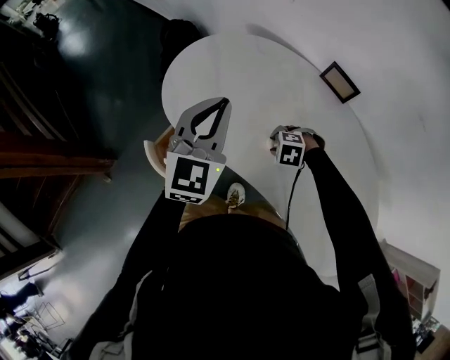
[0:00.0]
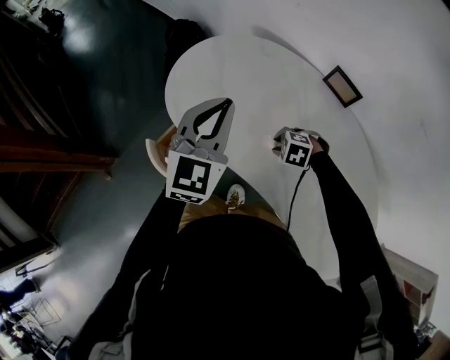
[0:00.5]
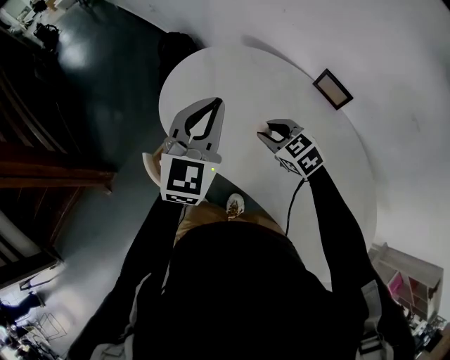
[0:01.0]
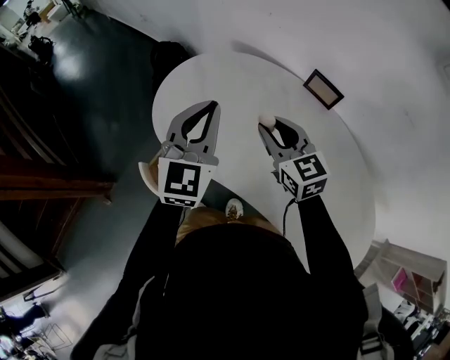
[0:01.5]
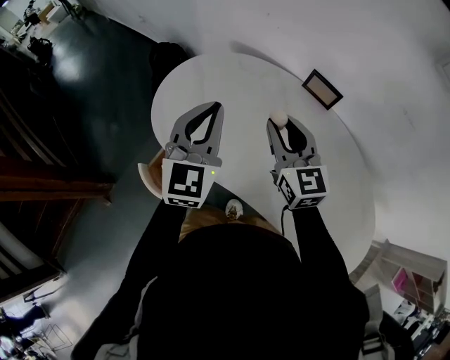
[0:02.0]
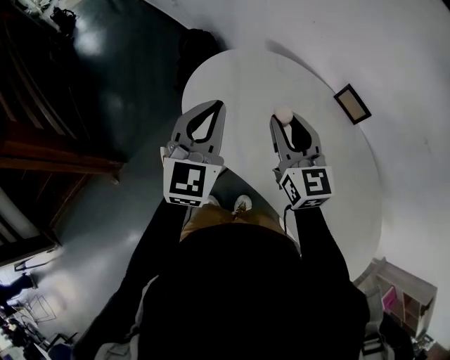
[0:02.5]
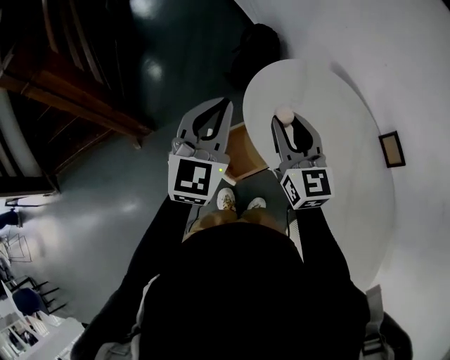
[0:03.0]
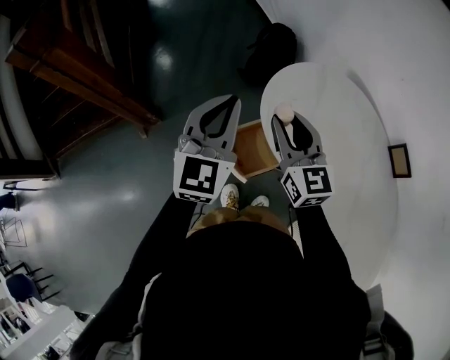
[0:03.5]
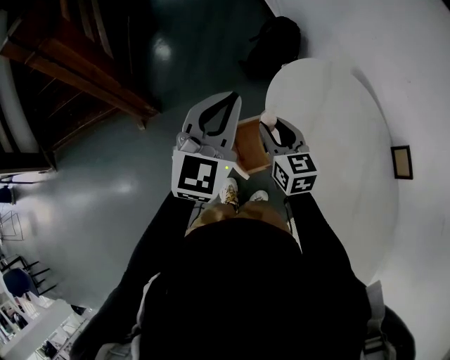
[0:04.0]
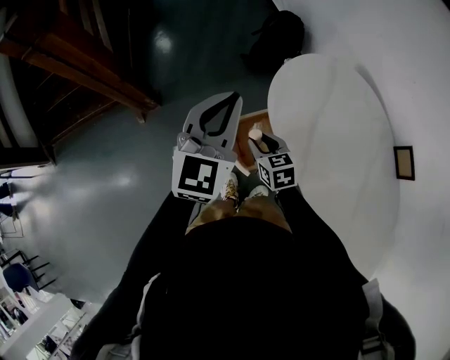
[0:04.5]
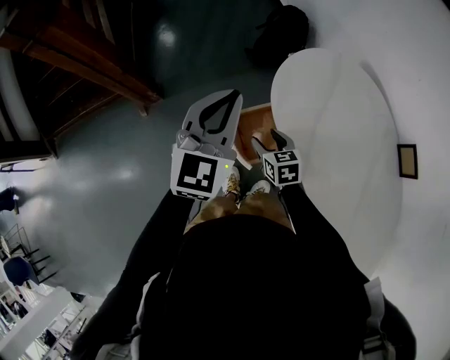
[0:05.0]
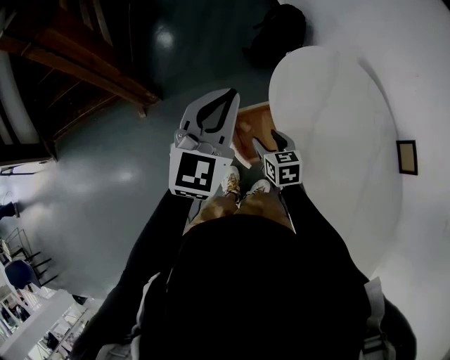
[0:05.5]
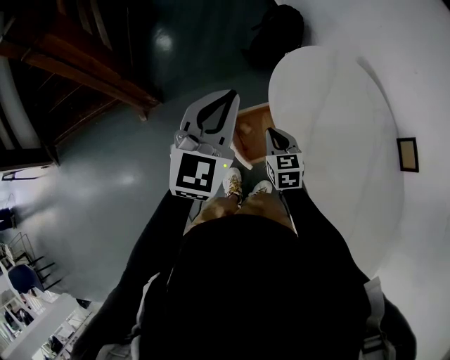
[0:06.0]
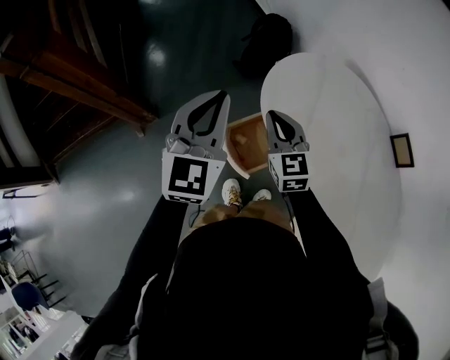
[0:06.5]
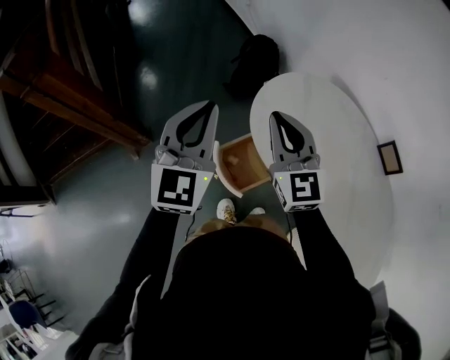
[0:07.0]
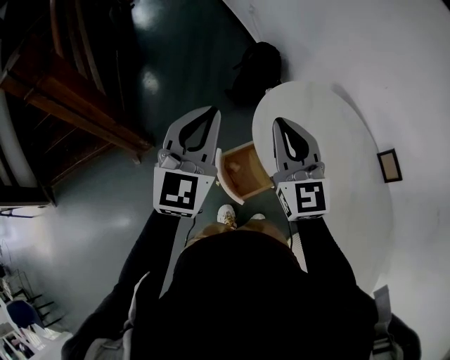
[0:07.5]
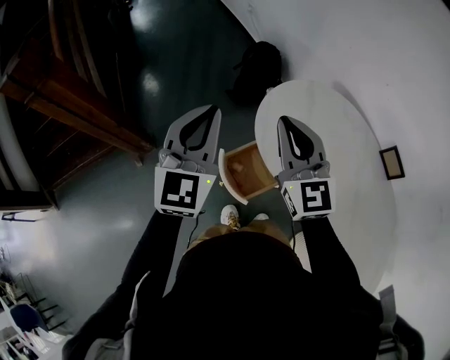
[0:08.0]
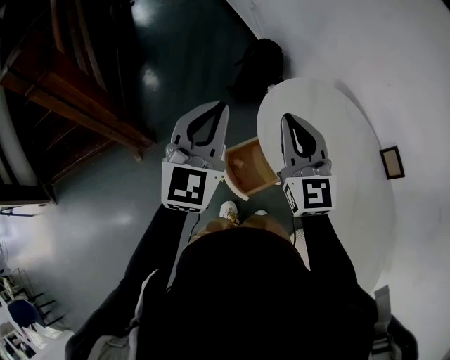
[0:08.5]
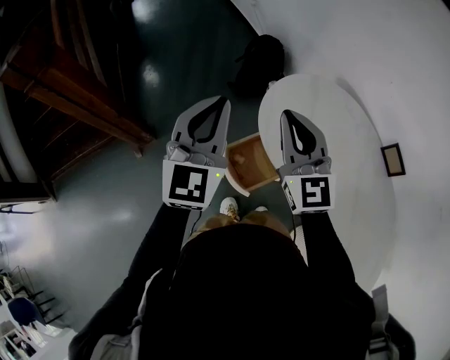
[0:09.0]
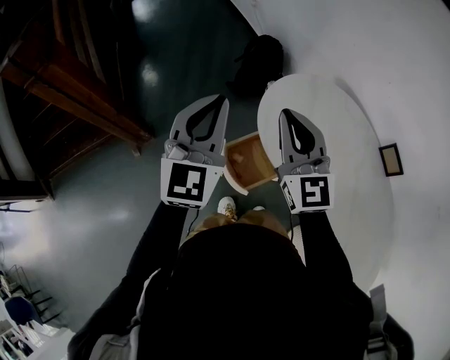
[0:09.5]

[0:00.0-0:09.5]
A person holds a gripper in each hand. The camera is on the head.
0:00.0 to 0:02.0: The right gripper travels upward by some 30 cm, and tilts its fingers about 70 degrees upward.
0:02.0 to 0:04.0: The right gripper shifts by about 35 cm, and turns by roughly 40 degrees. The left gripper shifts by approximately 30 cm, and turns by roughly 30 degrees.
0:04.0 to 0:05.5: The right gripper heads downward, covering some 15 cm, and opens its fingers.
0:05.5 to 0:07.5: The right gripper moves upward, about 30 cm, points its fingers roughly 40 degrees further upward, and closes its fingers. The left gripper moves upward, about 5 cm.
0:07.5 to 0:09.5: There are only small adjustments of the grippers.

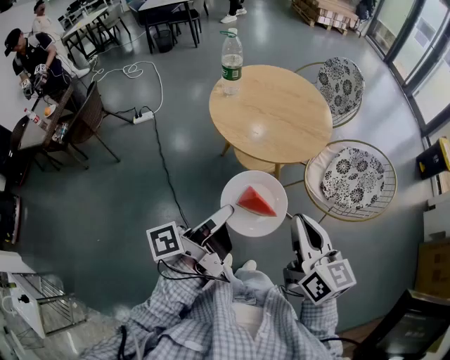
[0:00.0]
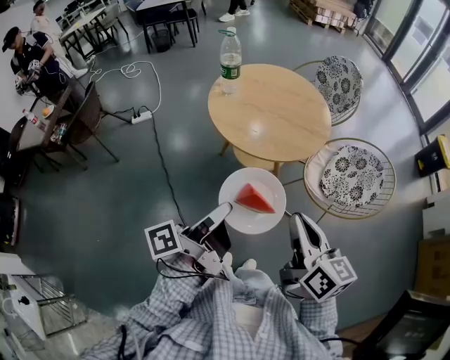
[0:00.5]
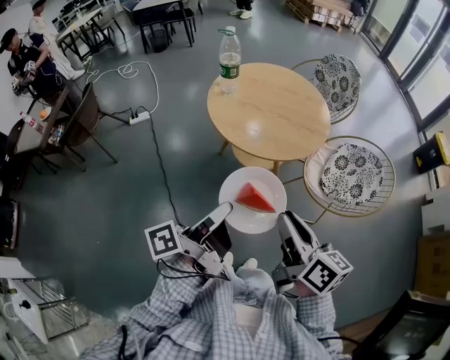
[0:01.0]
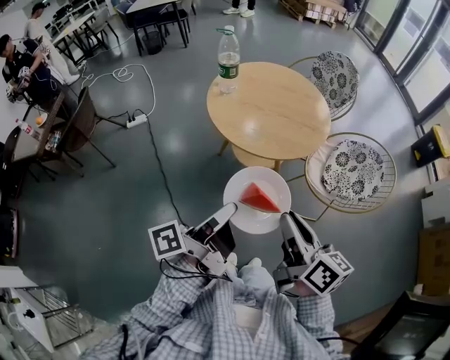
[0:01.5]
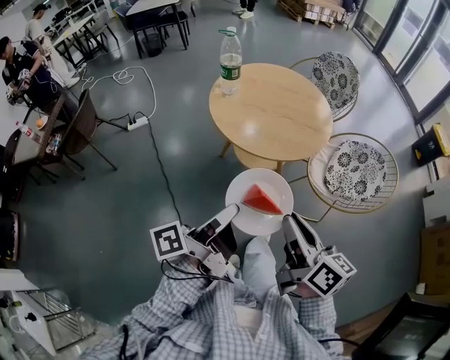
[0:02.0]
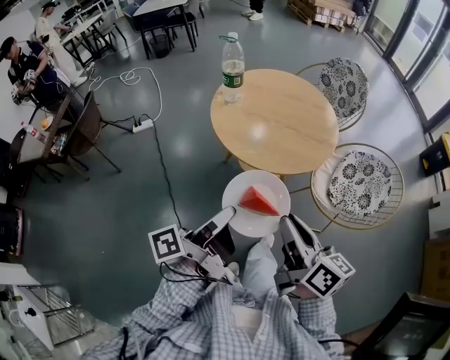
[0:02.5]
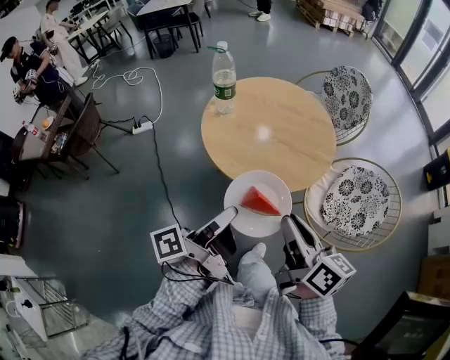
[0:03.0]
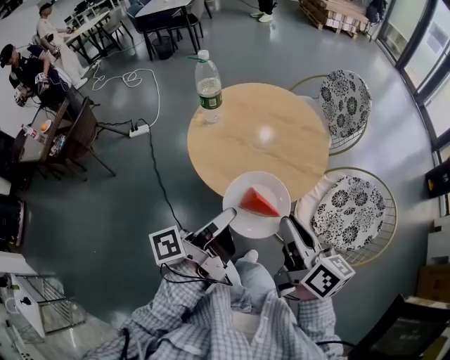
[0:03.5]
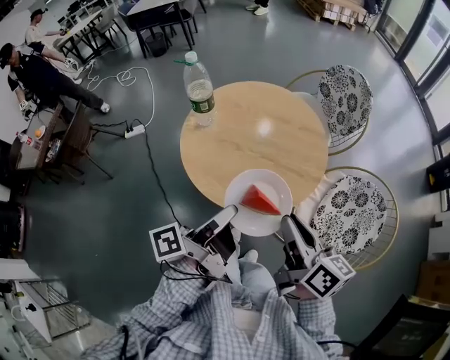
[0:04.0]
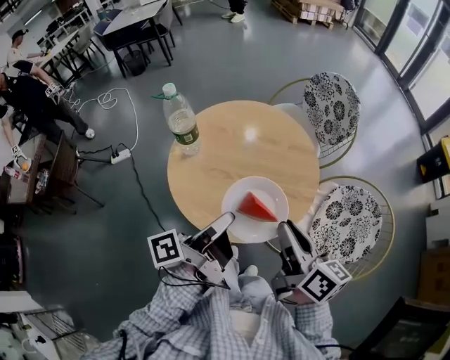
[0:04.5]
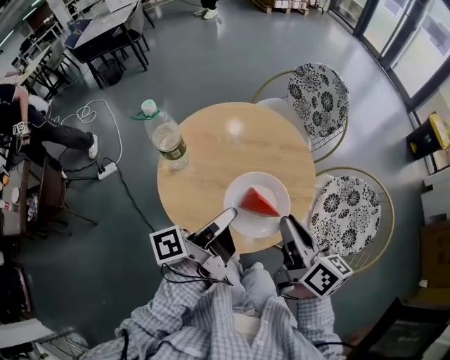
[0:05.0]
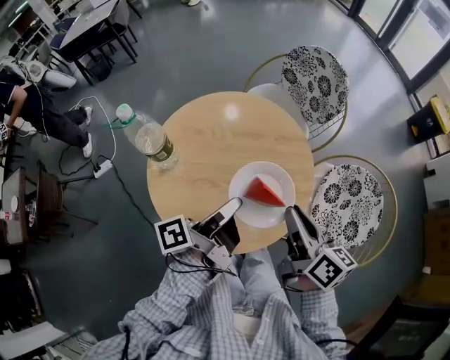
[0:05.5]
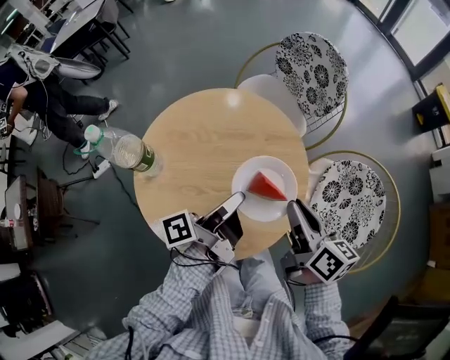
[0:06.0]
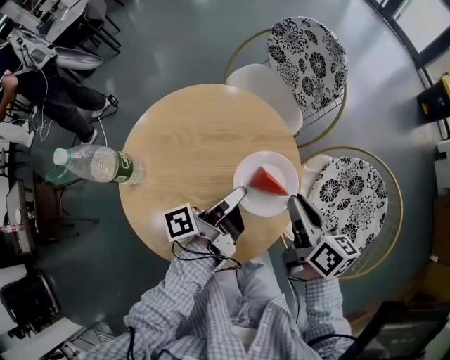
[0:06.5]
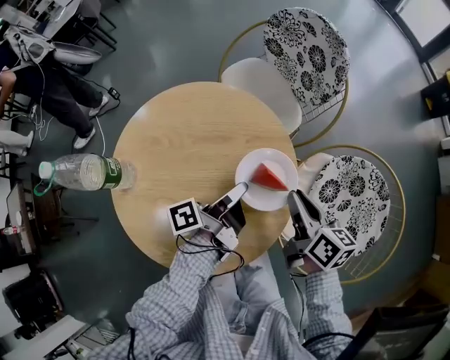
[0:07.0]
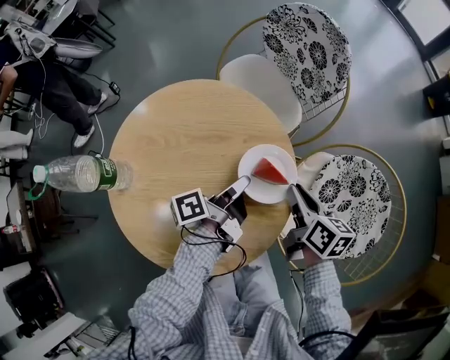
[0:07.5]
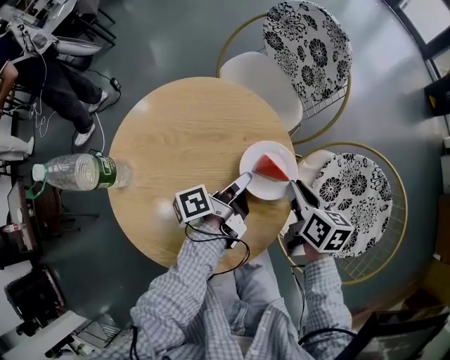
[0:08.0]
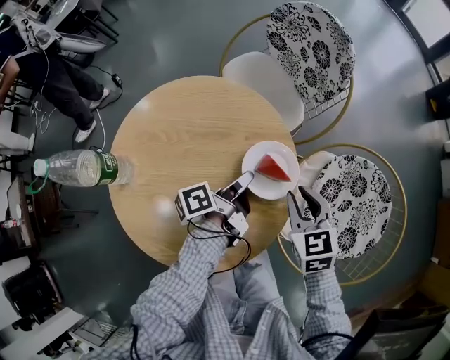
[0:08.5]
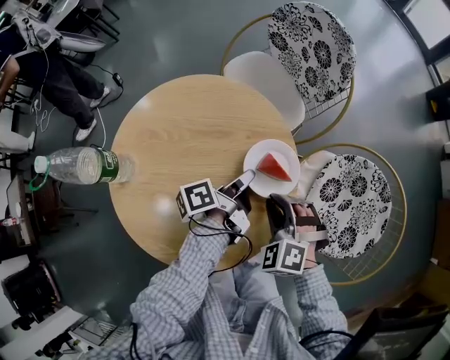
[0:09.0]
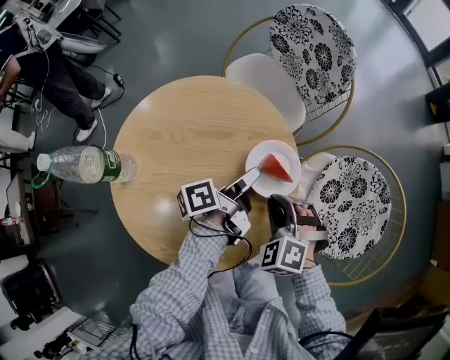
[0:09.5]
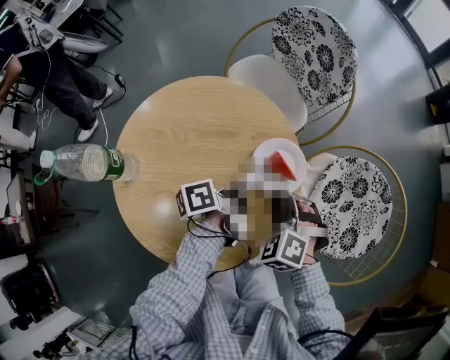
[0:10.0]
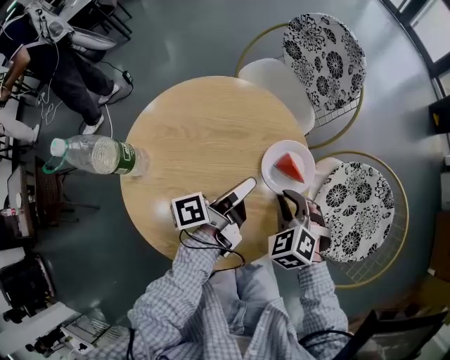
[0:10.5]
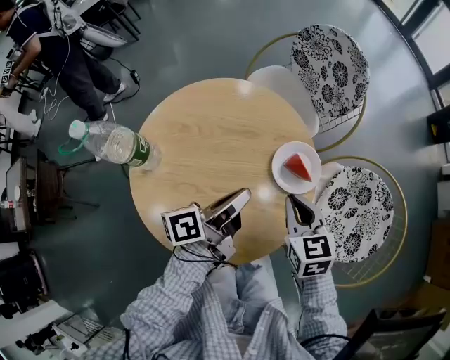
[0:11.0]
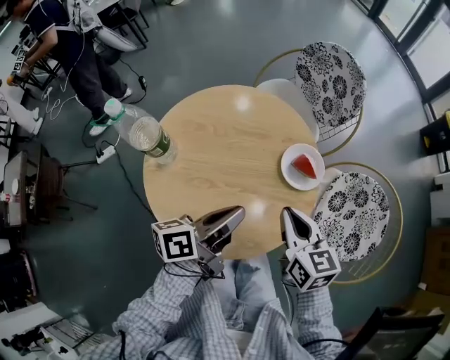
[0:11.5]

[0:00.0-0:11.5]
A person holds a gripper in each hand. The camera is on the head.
0:00.0 to 0:02.0: The right gripper shifts by about 5 cm, and changes its angle by roughly 20 degrees.
0:02.0 to 0:04.0: The right gripper changes place by roughly 25 cm.
0:04.0 to 0:06.0: The right gripper moves about 20 cm.
0:06.0 to 0:07.5: The right gripper heads downward, covering some 15 cm.
0:07.5 to 0:09.5: The right gripper shifts by roughly 10 cm, and rotates around the line of its fingers by roughly 90 degrees, counterclockwise from behind.
0:09.5 to 0:11.5: The right gripper shifts approximately 10 cm upward, and twists about 60 degrees clockwise, seen from behind.

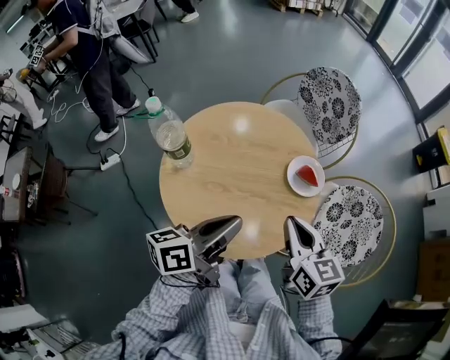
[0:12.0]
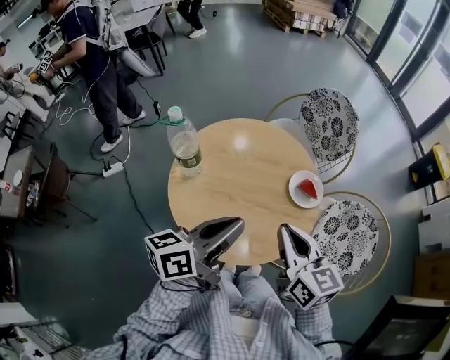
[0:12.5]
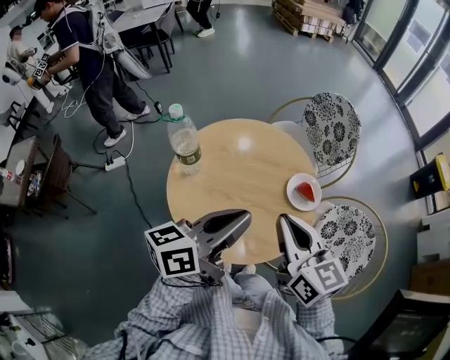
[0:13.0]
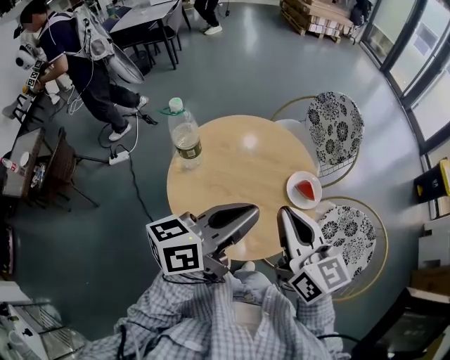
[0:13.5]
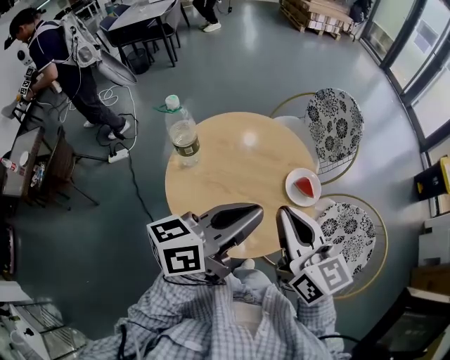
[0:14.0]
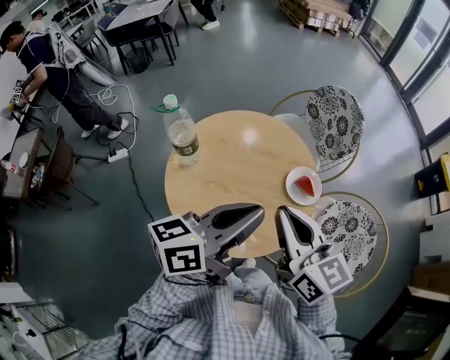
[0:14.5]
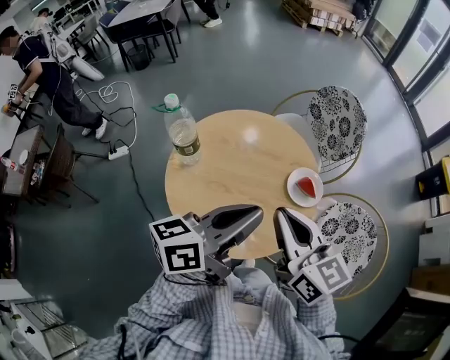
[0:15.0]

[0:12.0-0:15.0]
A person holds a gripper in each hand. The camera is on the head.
0:12.0 to 0:13.5: The right gripper heads upward, covering approximately 10 cm, and swivels approximately 20 degrees.

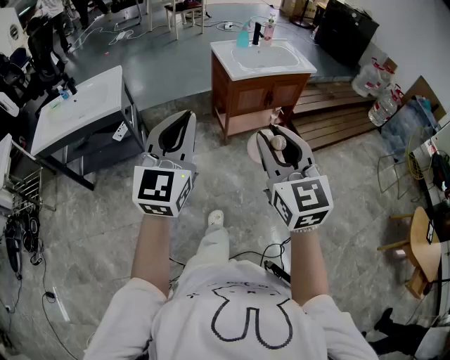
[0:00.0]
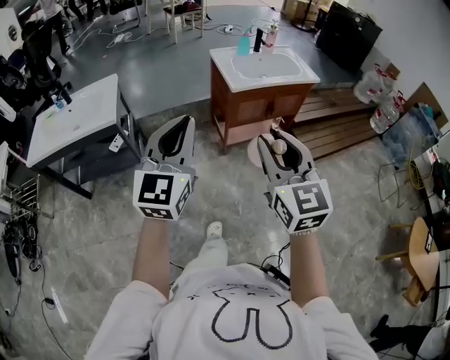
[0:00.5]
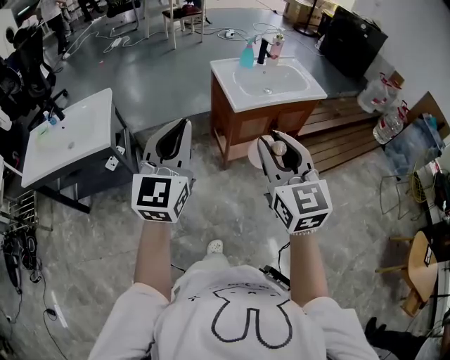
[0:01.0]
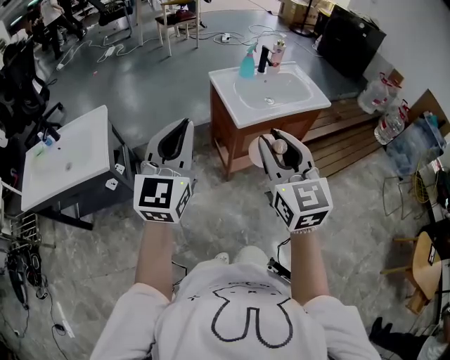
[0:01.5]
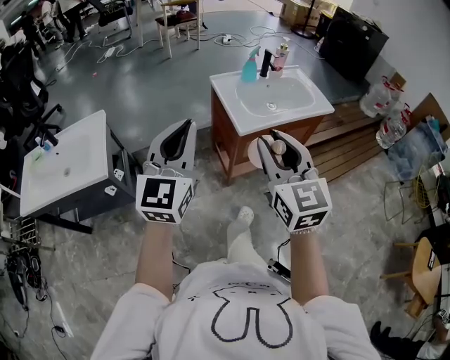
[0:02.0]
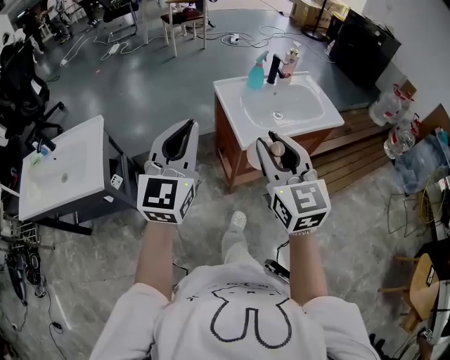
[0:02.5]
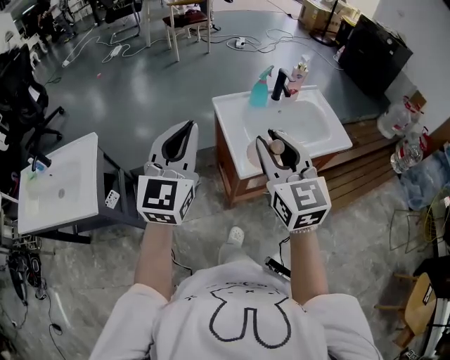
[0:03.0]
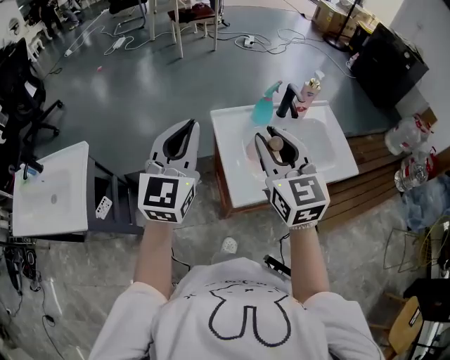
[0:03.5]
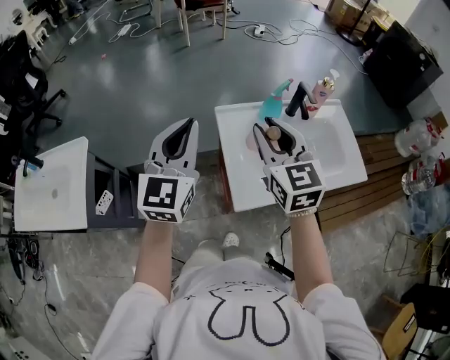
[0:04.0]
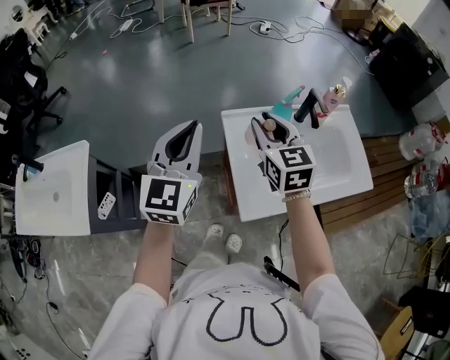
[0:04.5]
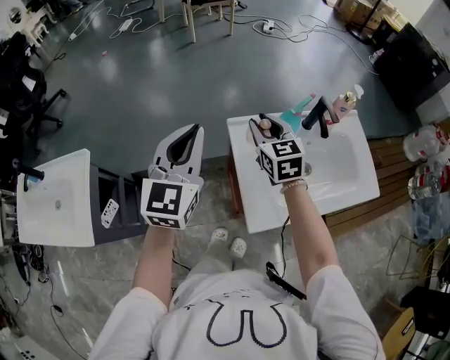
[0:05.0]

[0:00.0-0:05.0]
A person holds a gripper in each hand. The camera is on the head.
0:00.0 to 0:02.5: Both grippers are carried forward, roughly 40 cm.
0:02.5 to 0:05.0: Both grippers move forward, roughly 40 cm. The right gripper turns by about 20 degrees.
